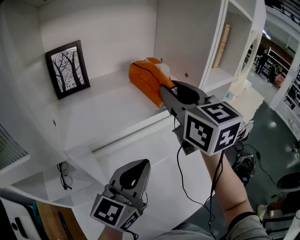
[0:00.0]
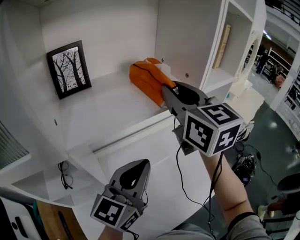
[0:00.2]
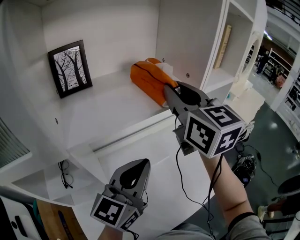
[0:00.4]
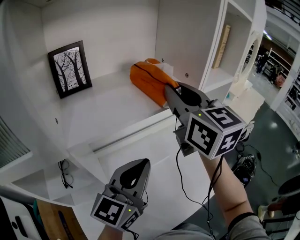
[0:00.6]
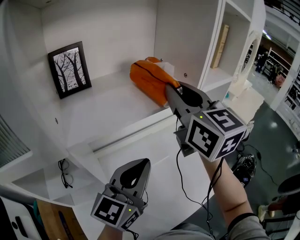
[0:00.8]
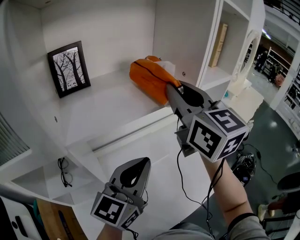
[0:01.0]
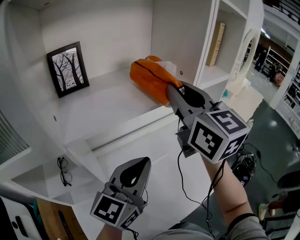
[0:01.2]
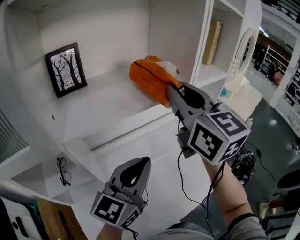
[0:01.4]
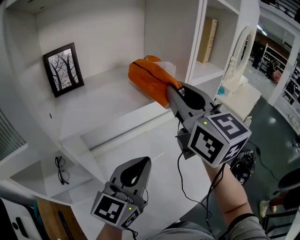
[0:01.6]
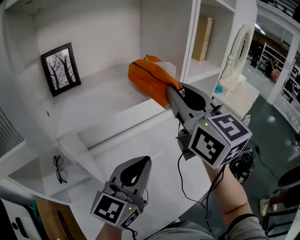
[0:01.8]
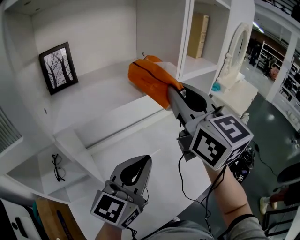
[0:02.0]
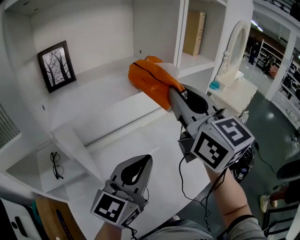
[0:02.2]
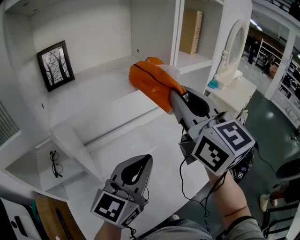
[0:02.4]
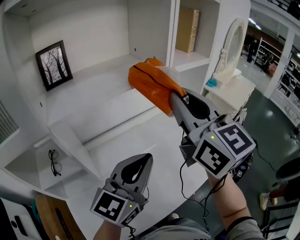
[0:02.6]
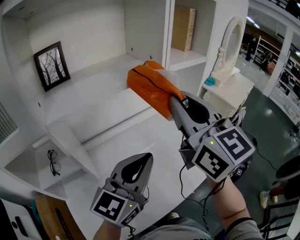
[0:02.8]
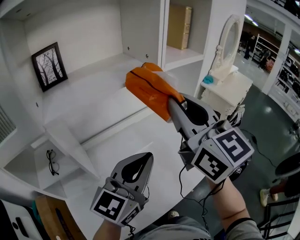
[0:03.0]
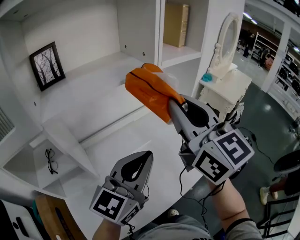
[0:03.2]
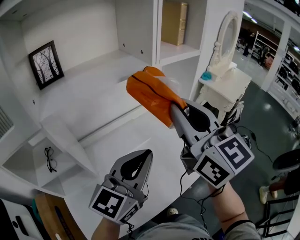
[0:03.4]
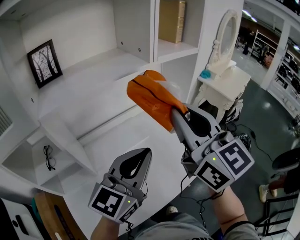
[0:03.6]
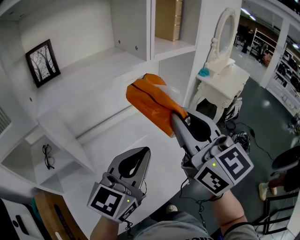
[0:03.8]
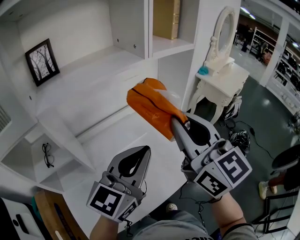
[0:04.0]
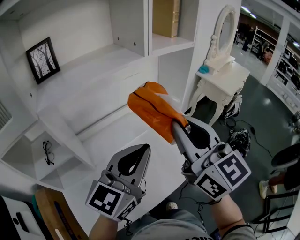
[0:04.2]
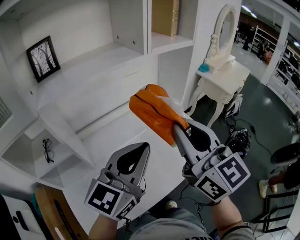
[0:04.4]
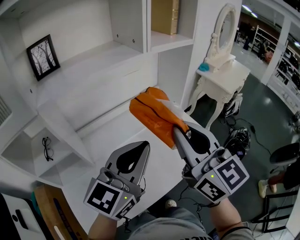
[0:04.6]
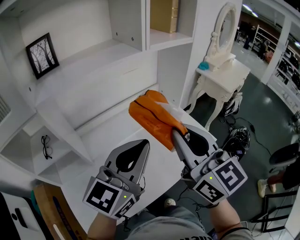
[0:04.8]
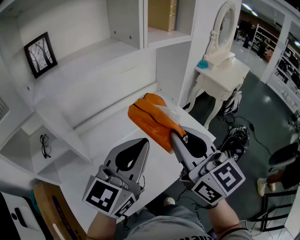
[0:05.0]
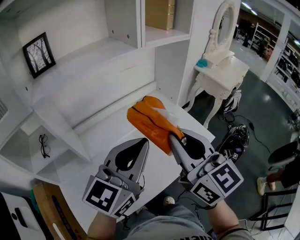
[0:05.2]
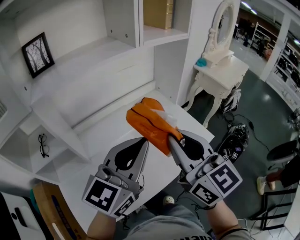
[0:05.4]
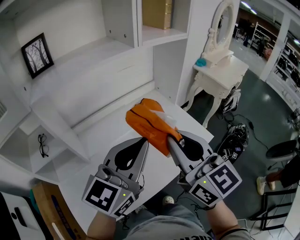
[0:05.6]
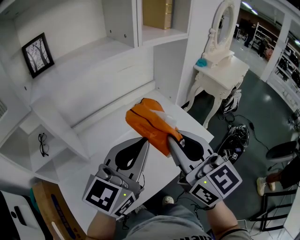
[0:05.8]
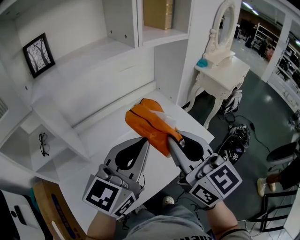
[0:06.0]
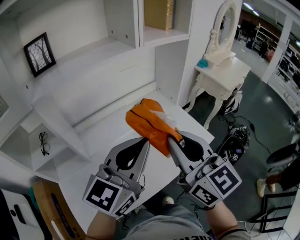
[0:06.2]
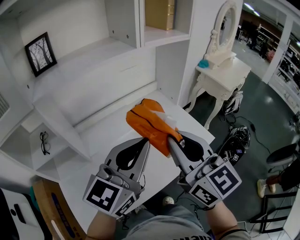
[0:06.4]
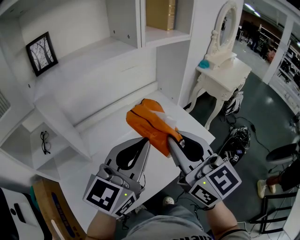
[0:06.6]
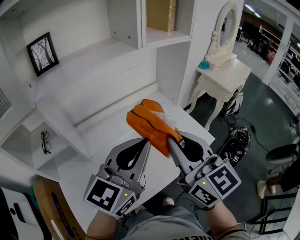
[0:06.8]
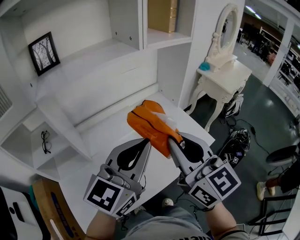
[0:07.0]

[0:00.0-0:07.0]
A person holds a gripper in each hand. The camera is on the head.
0:00.0 to 0:01.4: The right gripper moves about 5 cm.
0:01.4 to 0:02.8: The left gripper heads to the right and backward, covering roughly 10 cm. Meanwhile the right gripper heads backward and to the right, covering about 15 cm.
0:02.8 to 0:04.2: The right gripper moves backward and downward, some 10 cm.
0:04.2 to 0:05.6: The right gripper goes about 5 cm downward.
0:05.6 to 0:07.0: Both grippers stay about where they are.

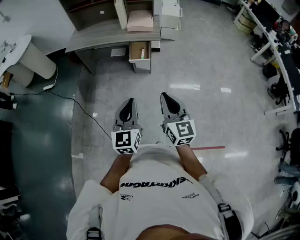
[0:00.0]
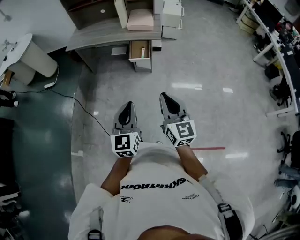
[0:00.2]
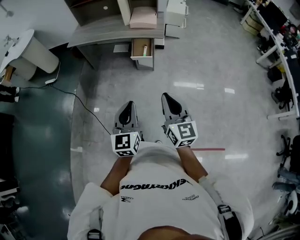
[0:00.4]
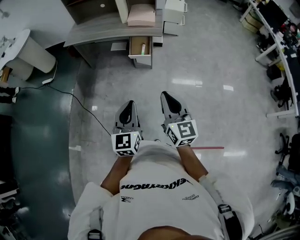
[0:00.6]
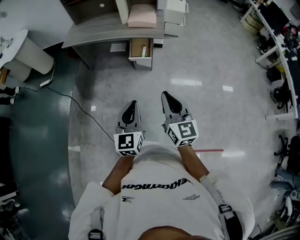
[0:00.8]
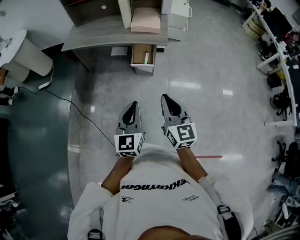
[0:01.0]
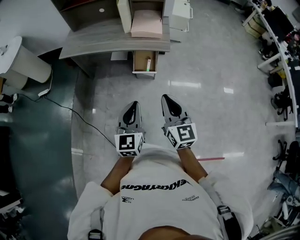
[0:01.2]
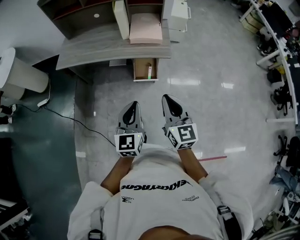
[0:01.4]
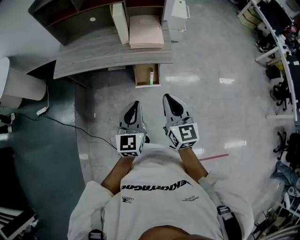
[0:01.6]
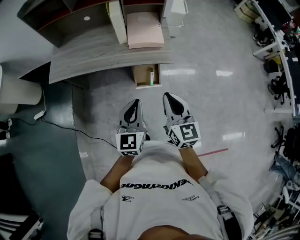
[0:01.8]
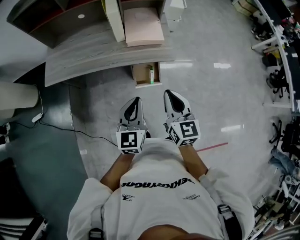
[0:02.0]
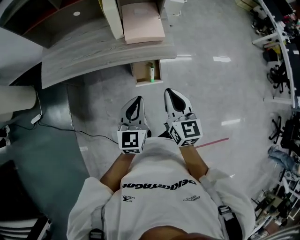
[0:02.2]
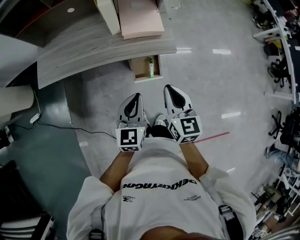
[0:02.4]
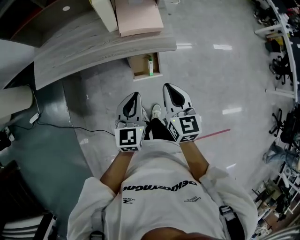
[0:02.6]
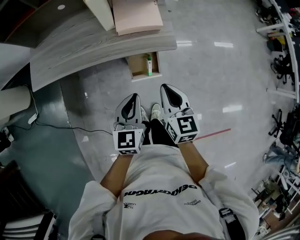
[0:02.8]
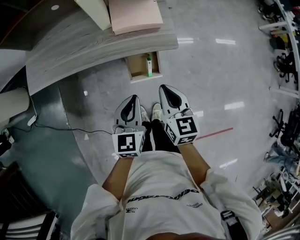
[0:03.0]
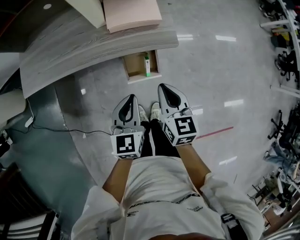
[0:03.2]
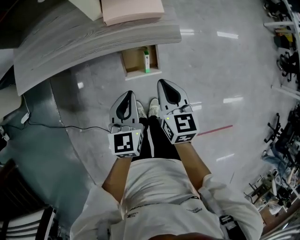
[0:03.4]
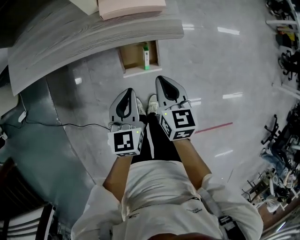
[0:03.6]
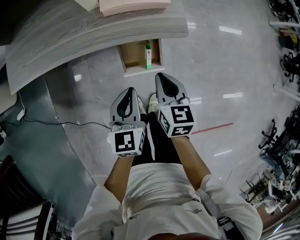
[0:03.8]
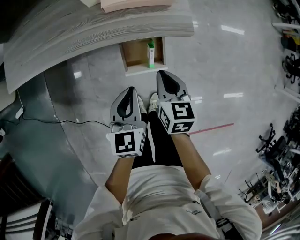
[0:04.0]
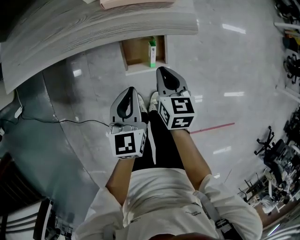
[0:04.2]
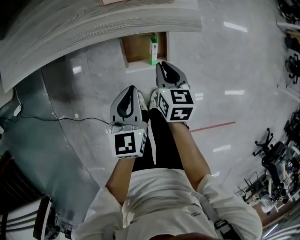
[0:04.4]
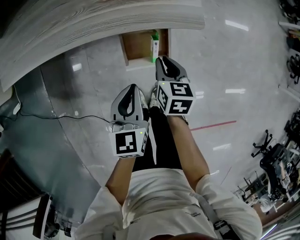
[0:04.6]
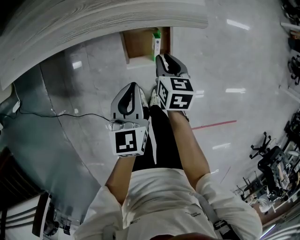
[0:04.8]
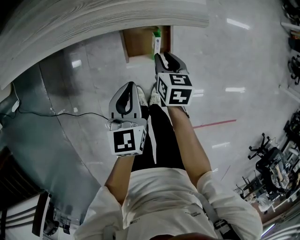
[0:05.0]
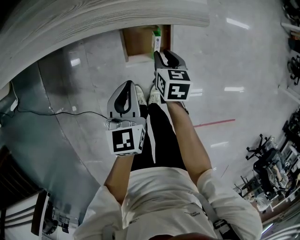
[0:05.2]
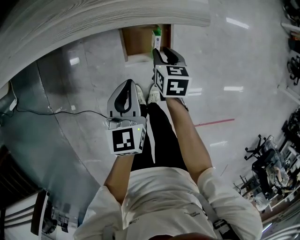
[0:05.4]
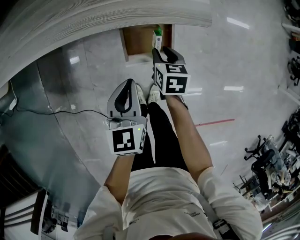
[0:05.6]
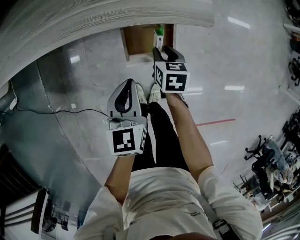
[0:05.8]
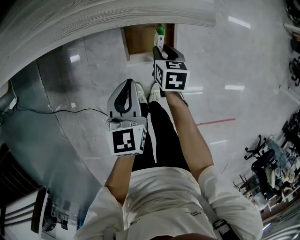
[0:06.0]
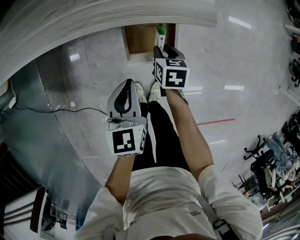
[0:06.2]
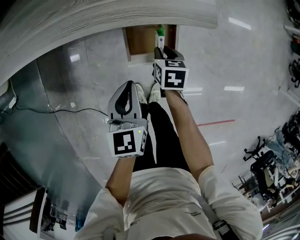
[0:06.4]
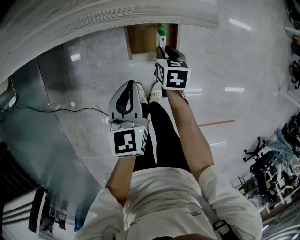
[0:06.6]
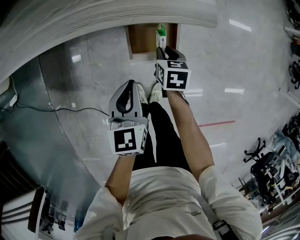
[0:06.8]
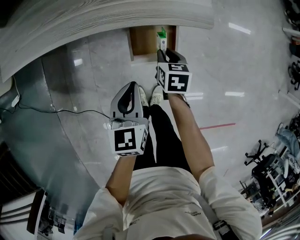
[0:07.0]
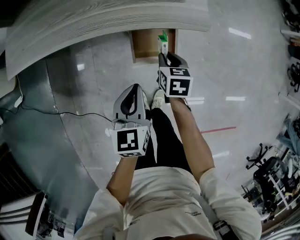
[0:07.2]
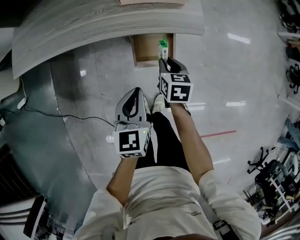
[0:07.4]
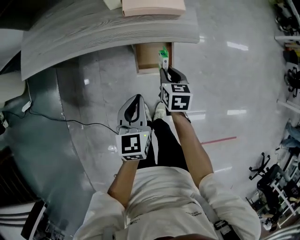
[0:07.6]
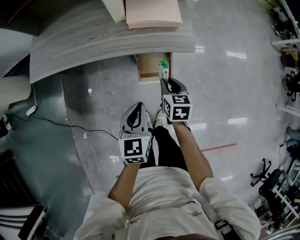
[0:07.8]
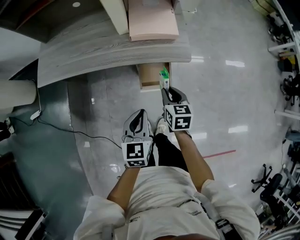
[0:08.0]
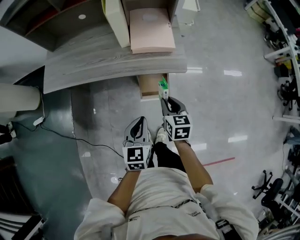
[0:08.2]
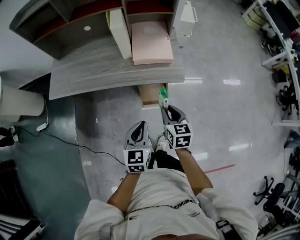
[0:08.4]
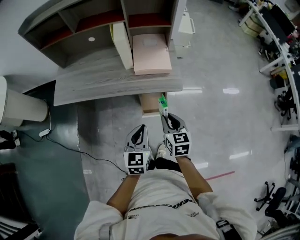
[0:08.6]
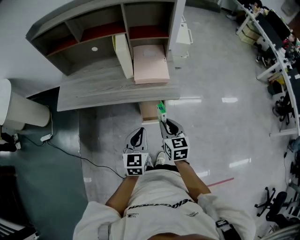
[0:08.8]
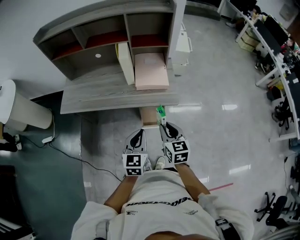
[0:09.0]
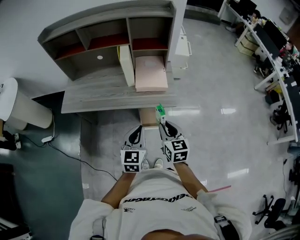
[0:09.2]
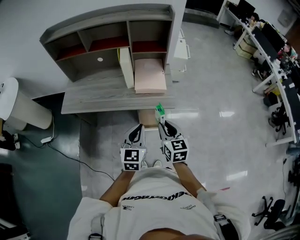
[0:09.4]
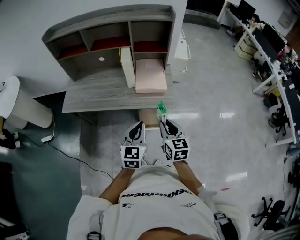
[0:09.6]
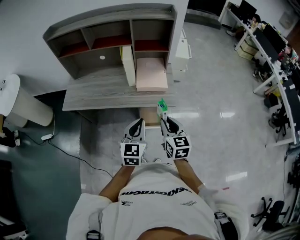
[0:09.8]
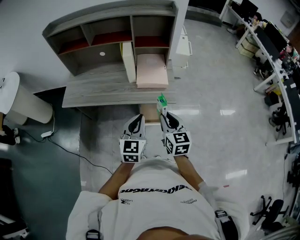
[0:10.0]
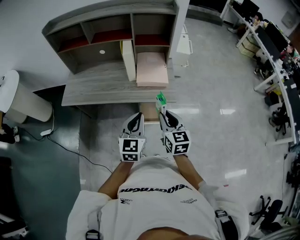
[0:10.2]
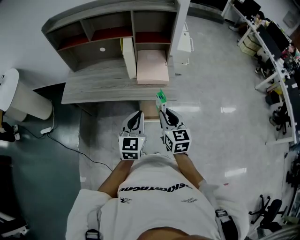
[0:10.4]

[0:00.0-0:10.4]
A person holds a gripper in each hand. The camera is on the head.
0:00.0 to 0:01.4: The grippers both shift forward by about 35 cm.
0:01.4 to 0:03.0: Both grippers move forward and downward, roughly 25 cm. The right gripper changes its angle by approximately 20 degrees.
0:03.0 to 0:04.4: The grippers both shift downward by some 20 cm.
0:04.4 to 0:06.0: The right gripper moves downward, approximately 10 cm, and opens up.
0:06.0 to 0:07.4: The left gripper shifts approximately 5 cm upward, while the right gripper is displaced upward by some 10 cm.
0:07.4 to 0:09.0: The grippers both shift upward by roughly 30 cm. The right gripper changes its angle by some 30 degrees.
0:09.0 to 0:10.4: Both grippers travel together upward, some 5 cm.

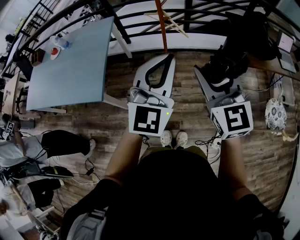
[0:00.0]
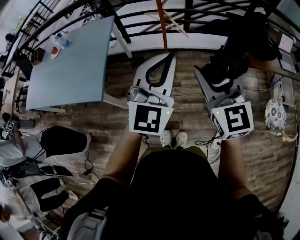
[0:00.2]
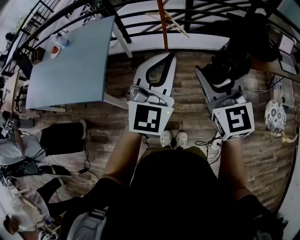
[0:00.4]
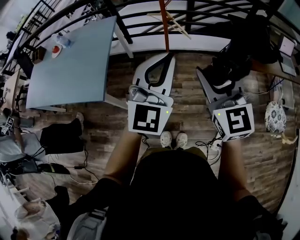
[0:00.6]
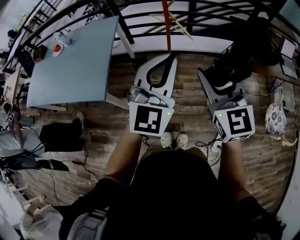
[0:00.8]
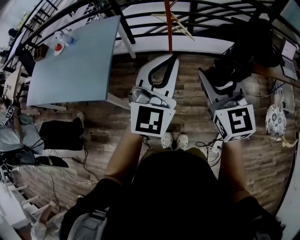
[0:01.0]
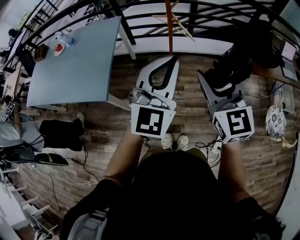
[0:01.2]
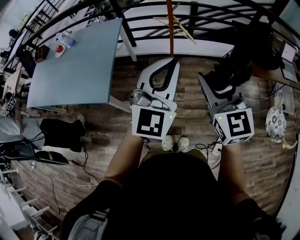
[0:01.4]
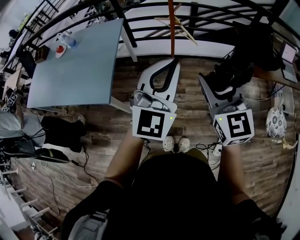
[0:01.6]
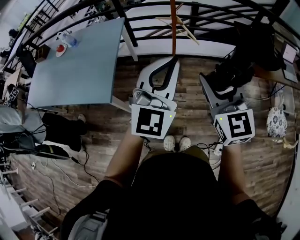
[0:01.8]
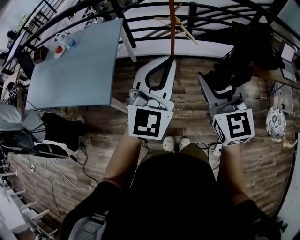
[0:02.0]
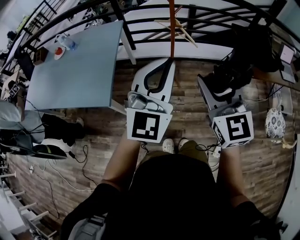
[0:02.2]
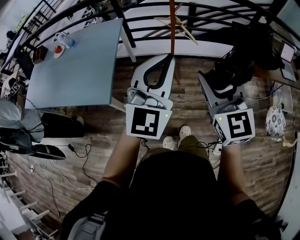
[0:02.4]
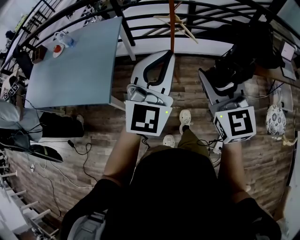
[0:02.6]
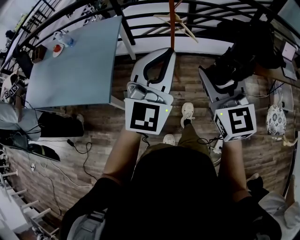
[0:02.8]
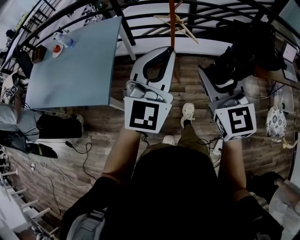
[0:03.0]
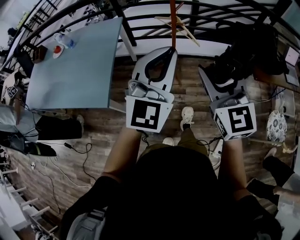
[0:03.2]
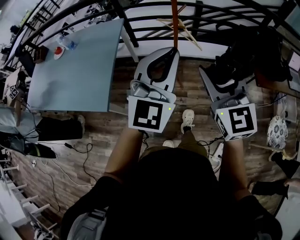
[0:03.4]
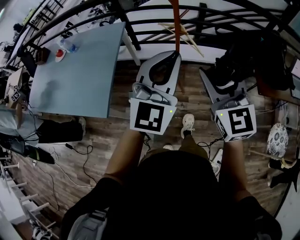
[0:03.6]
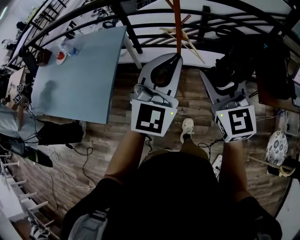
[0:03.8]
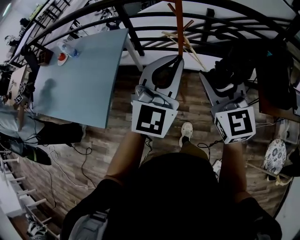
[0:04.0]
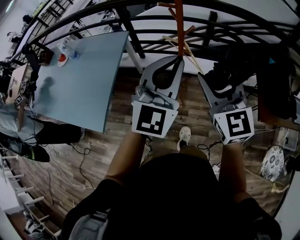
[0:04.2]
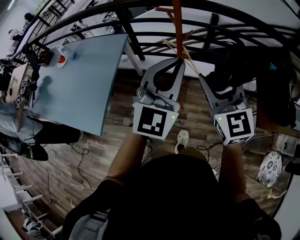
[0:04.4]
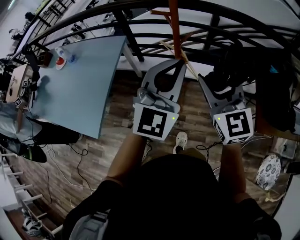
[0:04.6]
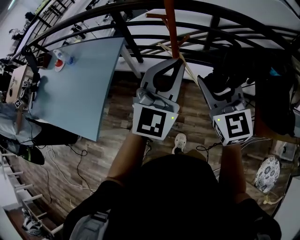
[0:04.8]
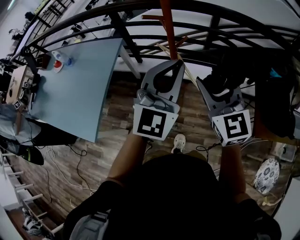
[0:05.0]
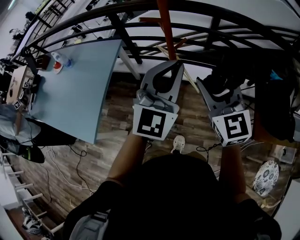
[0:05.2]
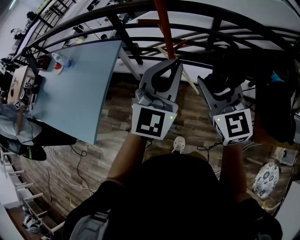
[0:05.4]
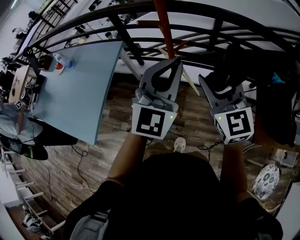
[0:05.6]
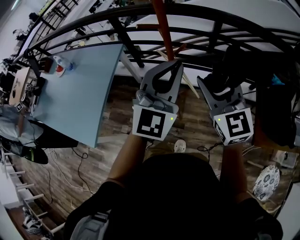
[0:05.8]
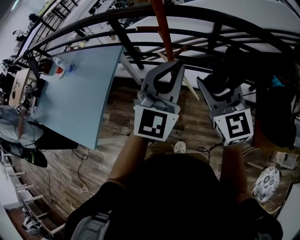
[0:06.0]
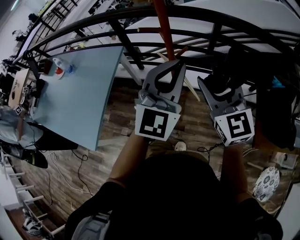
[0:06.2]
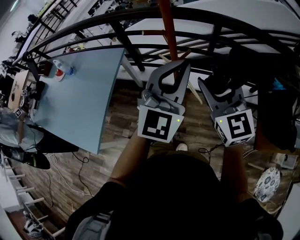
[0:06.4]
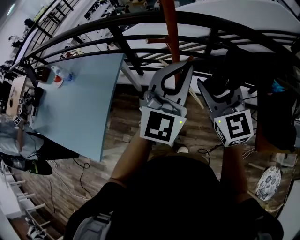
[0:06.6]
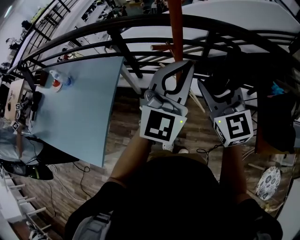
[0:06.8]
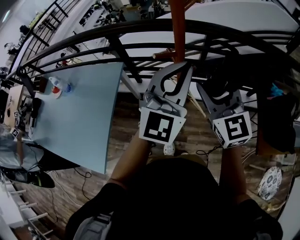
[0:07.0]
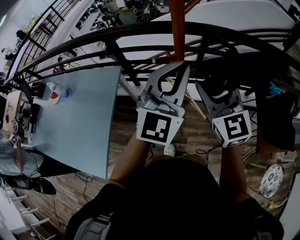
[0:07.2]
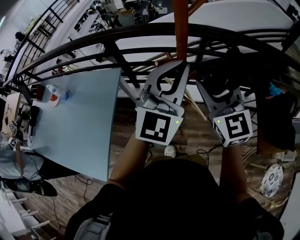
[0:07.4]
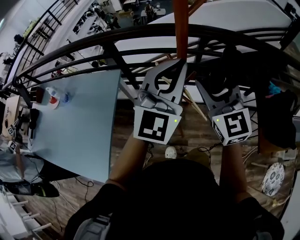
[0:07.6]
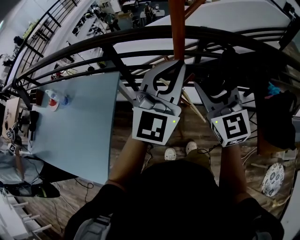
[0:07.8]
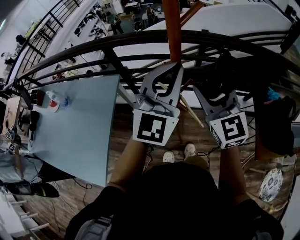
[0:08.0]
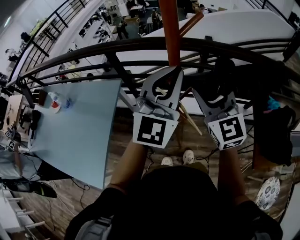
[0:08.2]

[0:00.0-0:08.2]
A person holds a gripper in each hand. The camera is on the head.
0:00.0 to 0:01.6: The left gripper goes about 5 cm to the left.
0:01.6 to 0:03.2: The grippers make only small movements.
0:03.2 to 0:05.0: The left gripper moves forward and to the right, roughly 30 cm. The right gripper travels forward by about 30 cm.
0:05.0 to 0:06.6: The grippers both shift forward by about 10 cm.
0:06.6 to 0:08.2: The right gripper moves forward, about 10 cm. The left gripper heads forward and upward, covering roughly 10 cm.
